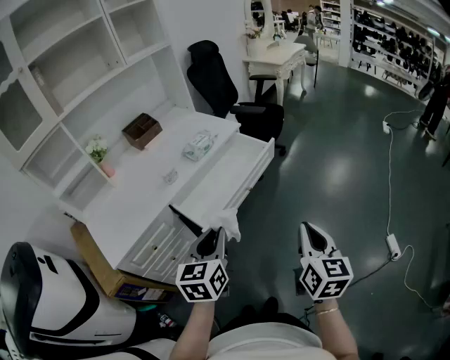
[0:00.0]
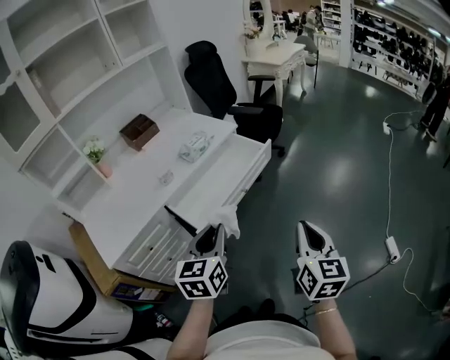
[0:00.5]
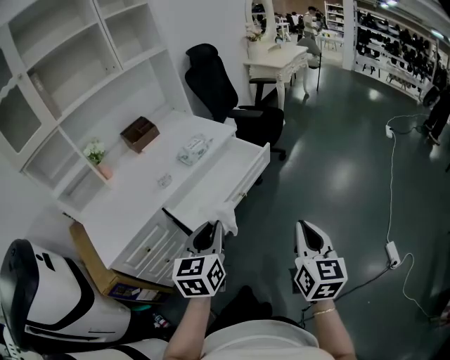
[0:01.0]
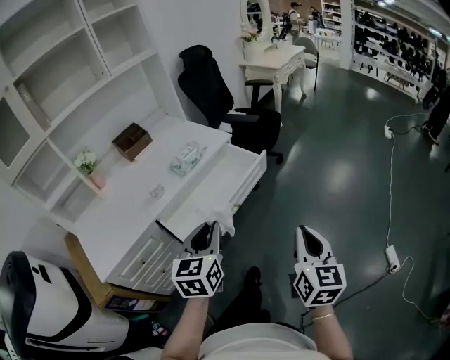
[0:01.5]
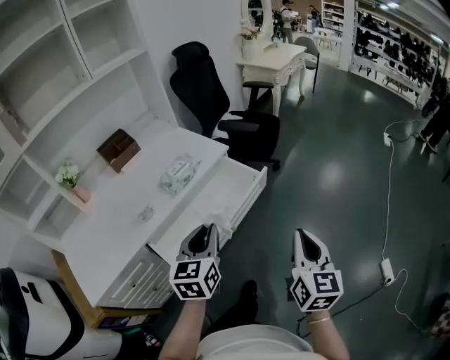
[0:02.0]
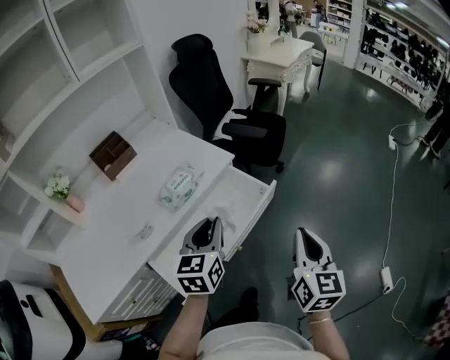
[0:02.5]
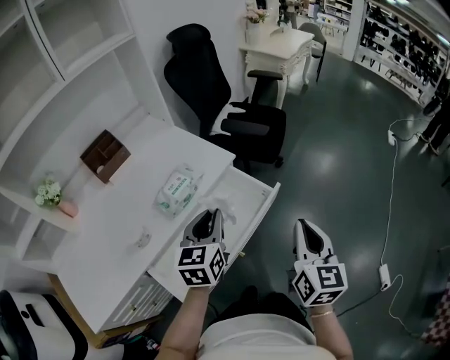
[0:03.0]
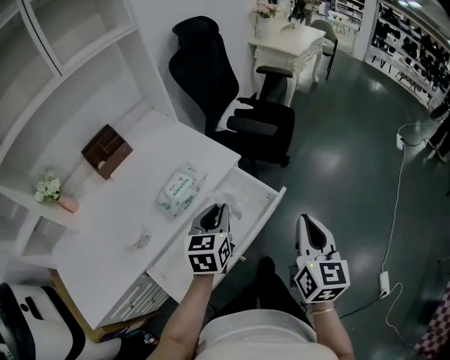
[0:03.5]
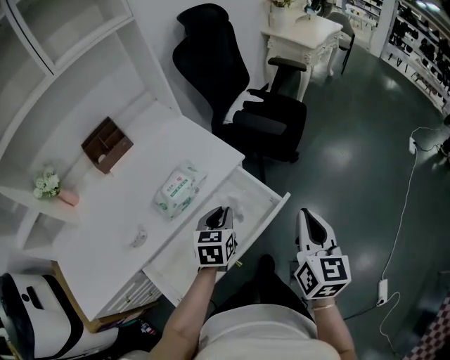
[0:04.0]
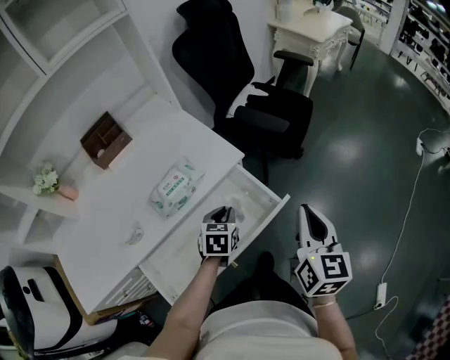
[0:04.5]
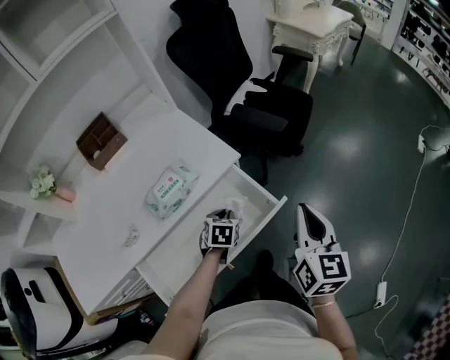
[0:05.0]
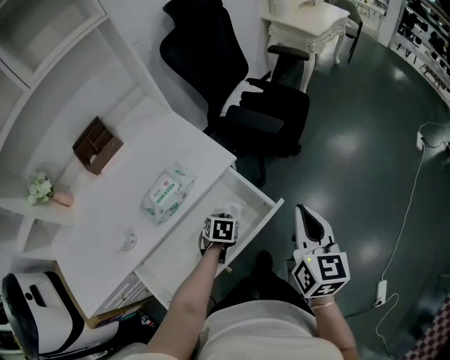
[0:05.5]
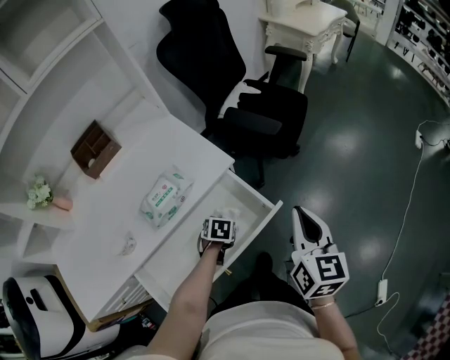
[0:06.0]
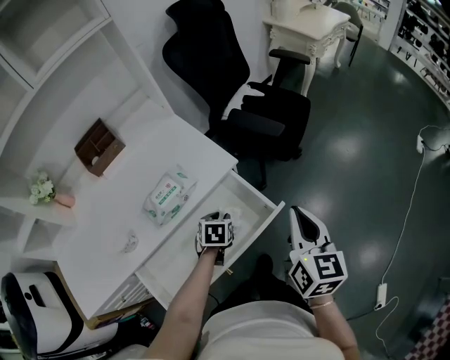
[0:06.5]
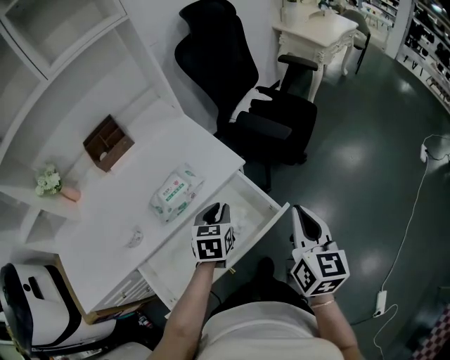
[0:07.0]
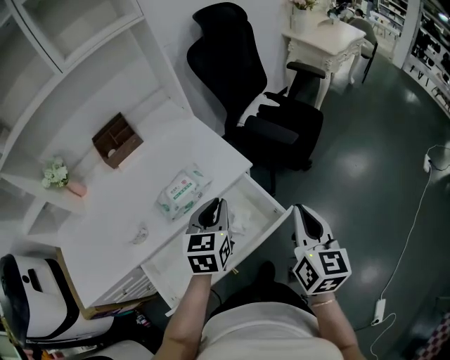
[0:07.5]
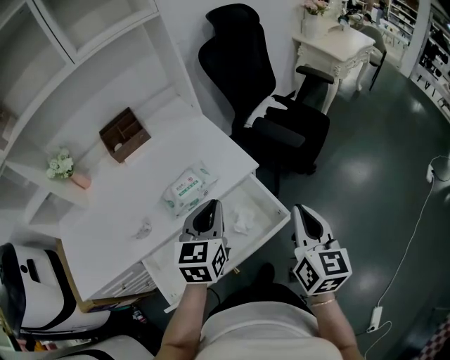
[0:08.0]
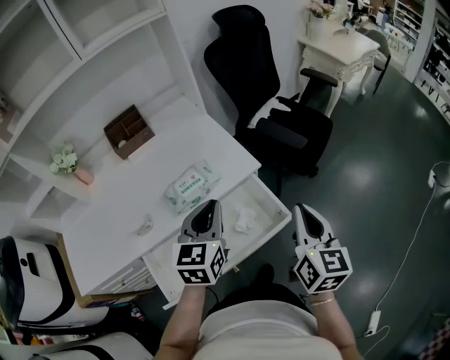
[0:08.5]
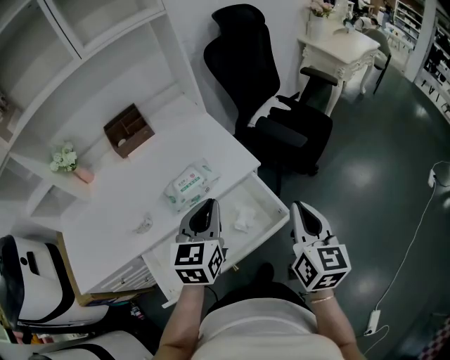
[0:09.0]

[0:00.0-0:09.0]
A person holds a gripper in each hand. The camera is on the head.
0:00.0 to 0:02.0: The two grippers go approximately 20 cm forward.
0:02.0 to 0:04.5: The right gripper is displaced forward by approximately 30 cm; the left gripper shifts roughly 35 cm forward and downward, and rotates roughly 30 degrees.
0:04.5 to 0:07.0: The left gripper travels downward and back again, some 10 cm each way.
0:07.0 to 0:09.0: The left gripper travels upward by approximately 15 cm, and changes its angle by approximately 20 degrees.

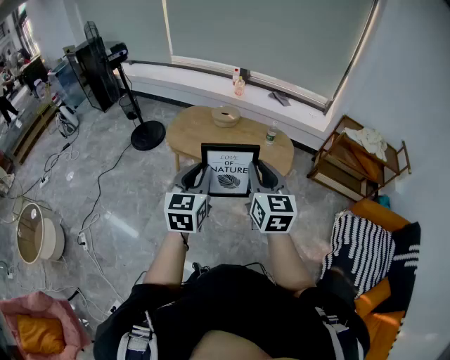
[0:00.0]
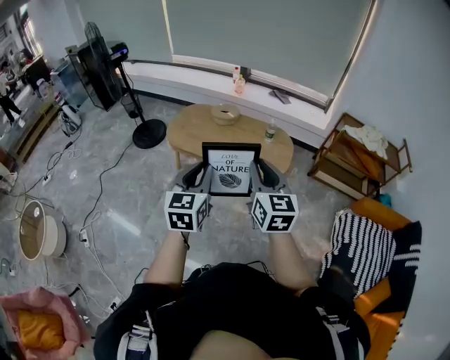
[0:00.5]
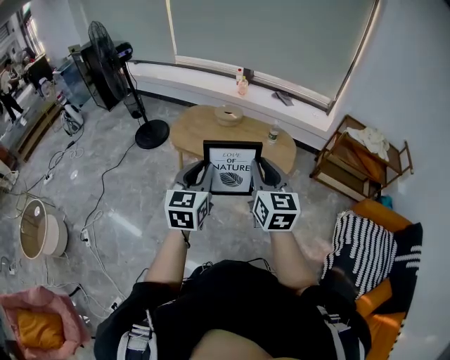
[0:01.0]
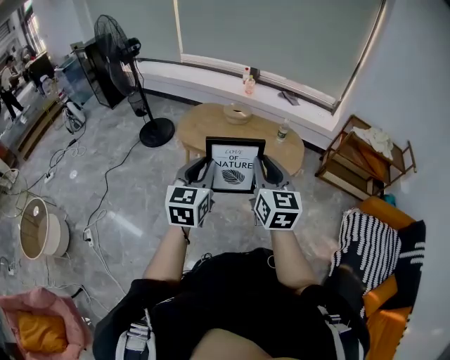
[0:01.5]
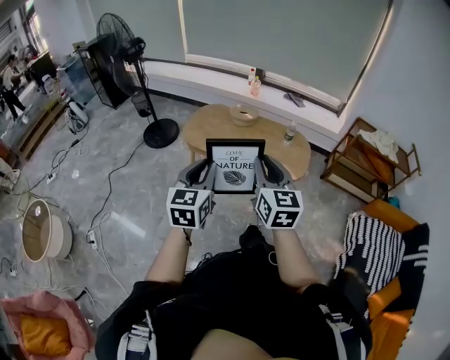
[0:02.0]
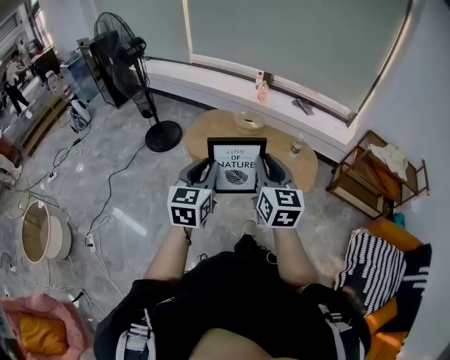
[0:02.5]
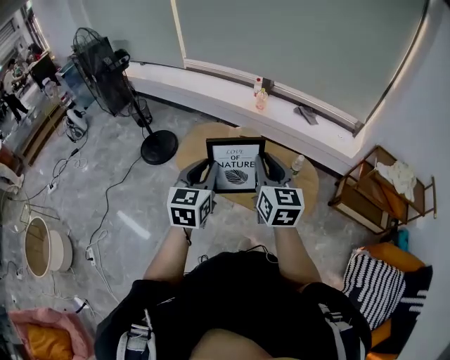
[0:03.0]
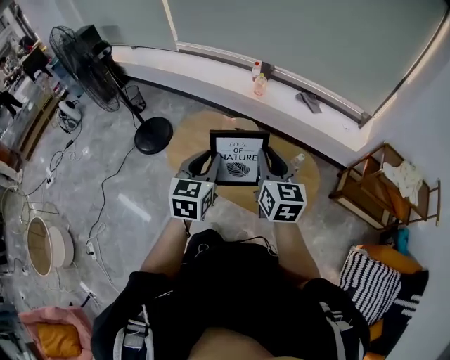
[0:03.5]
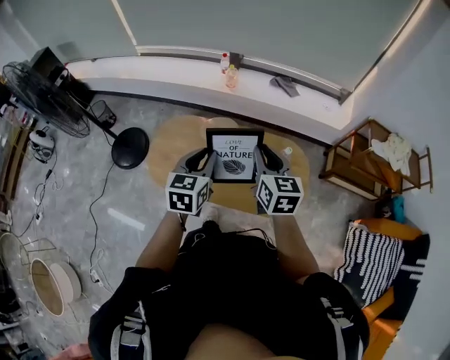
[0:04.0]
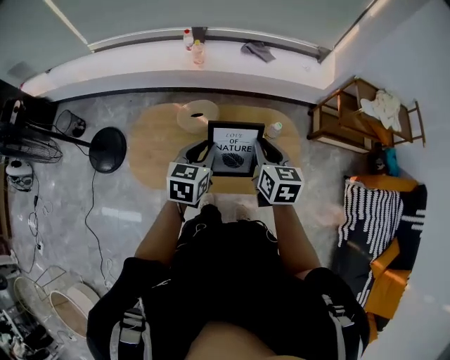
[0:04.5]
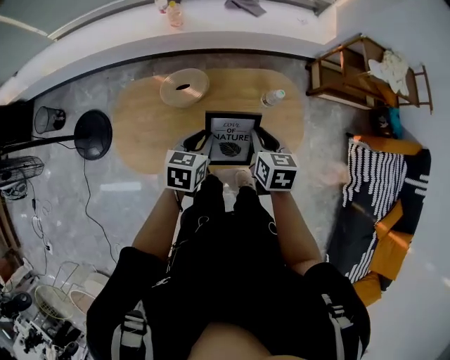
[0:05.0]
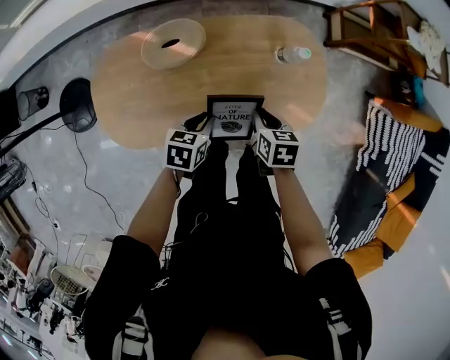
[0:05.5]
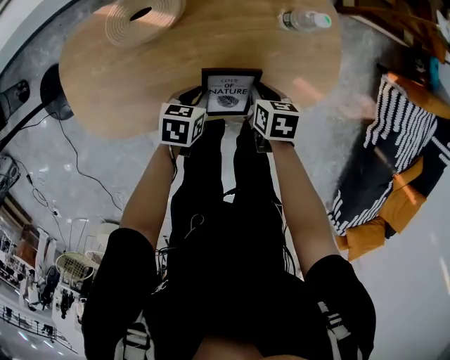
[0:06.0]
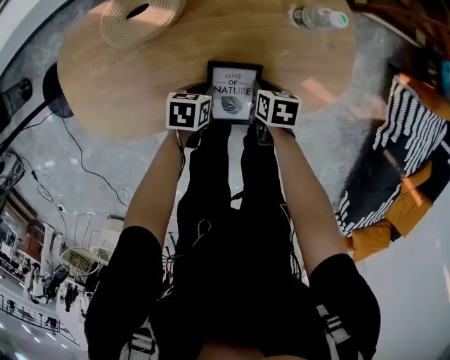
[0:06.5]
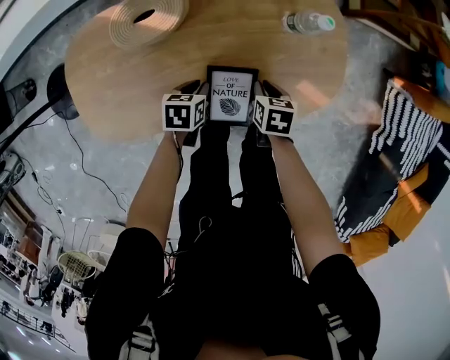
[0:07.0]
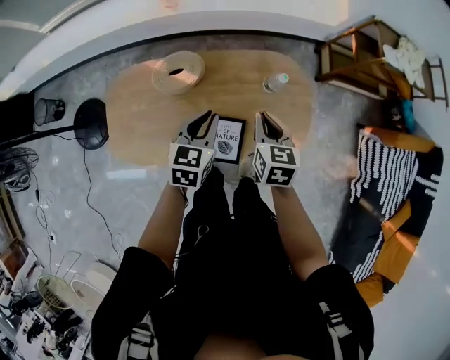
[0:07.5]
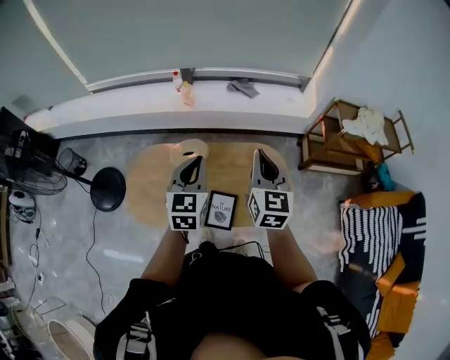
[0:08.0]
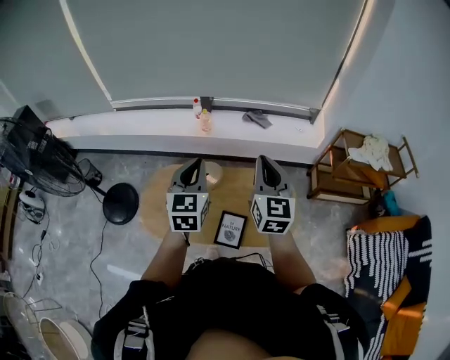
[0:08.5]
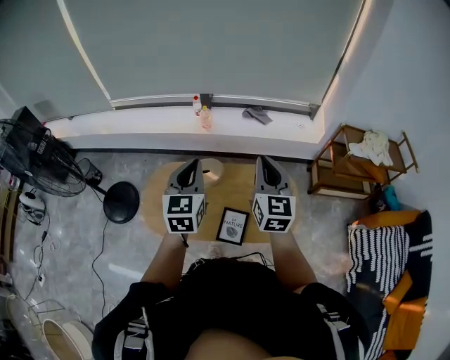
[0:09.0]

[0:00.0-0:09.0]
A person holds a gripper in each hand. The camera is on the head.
0:00.0 to 0:02.0: The grippers both shift to the left by some 10 cm.
0:02.0 to 0:04.5: Both grippers are carried roughly 70 cm. The right gripper changes its angle by roughly 30 degrees. The left gripper changes its angle by some 40 degrees.
0:04.5 to 0:07.0: Both grippers travel together downward, about 50 cm. The left gripper rotates roughly 40 degrees; the right gripper tilts its fingers approximately 40 degrees downward.
0:07.0 to 0:09.0: The grippers both shift upward by about 70 cm. The left gripper tilts its fingers roughly 50 degrees upward; the right gripper tilts its fingers about 60 degrees upward.

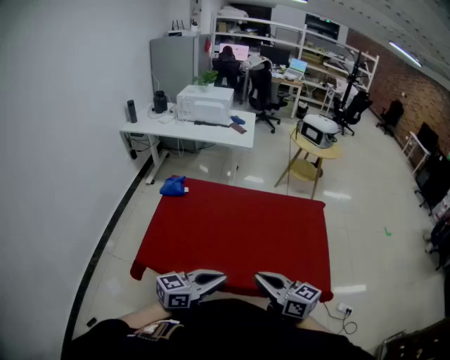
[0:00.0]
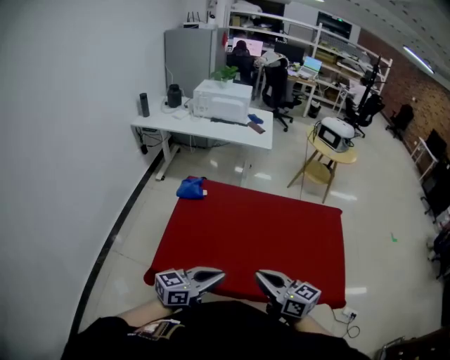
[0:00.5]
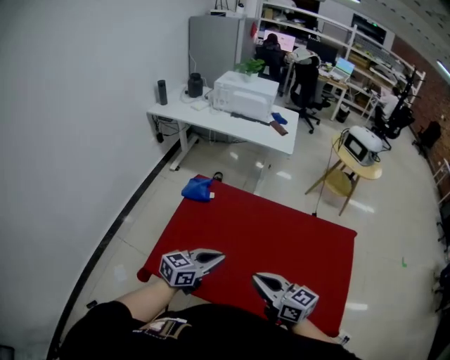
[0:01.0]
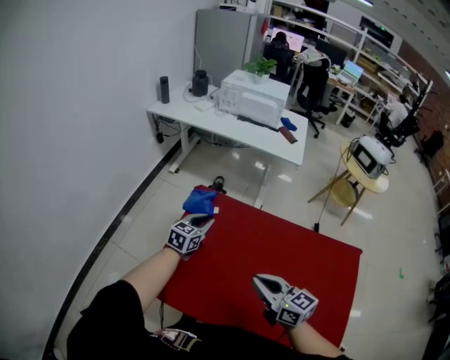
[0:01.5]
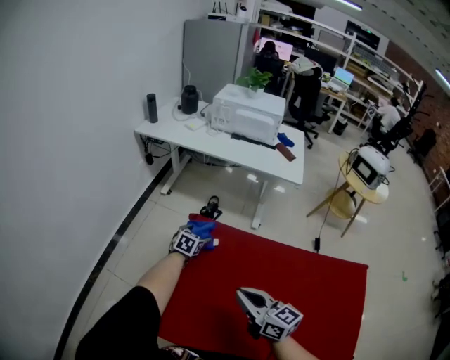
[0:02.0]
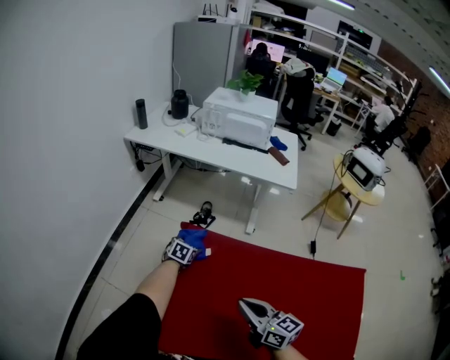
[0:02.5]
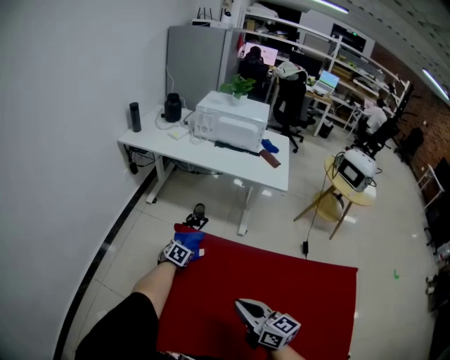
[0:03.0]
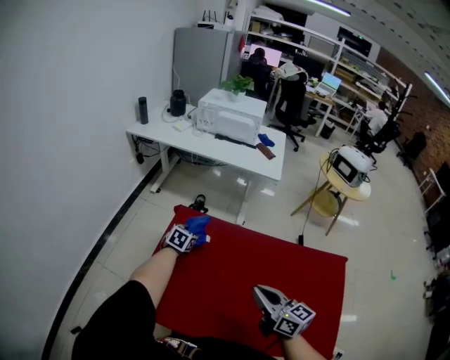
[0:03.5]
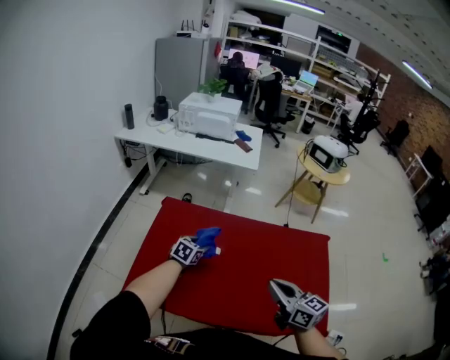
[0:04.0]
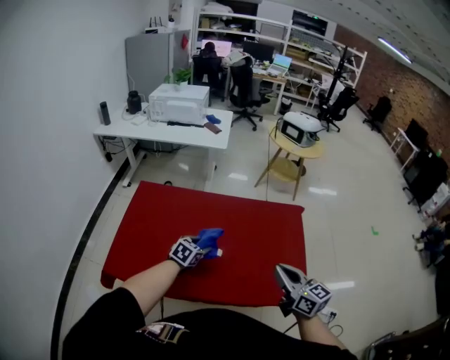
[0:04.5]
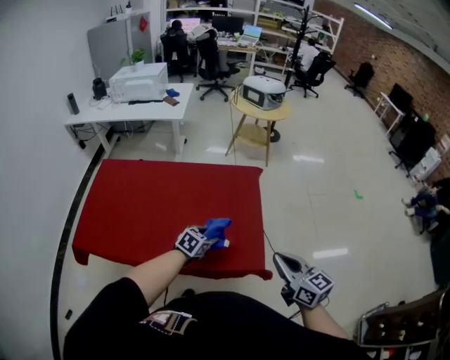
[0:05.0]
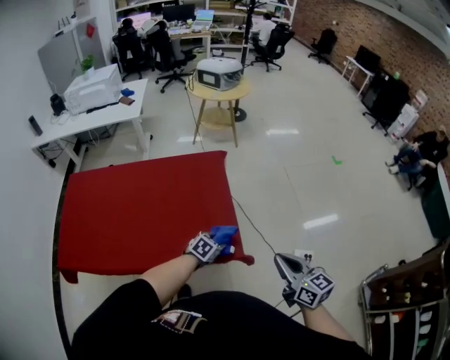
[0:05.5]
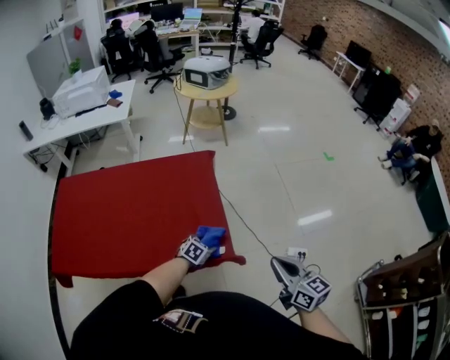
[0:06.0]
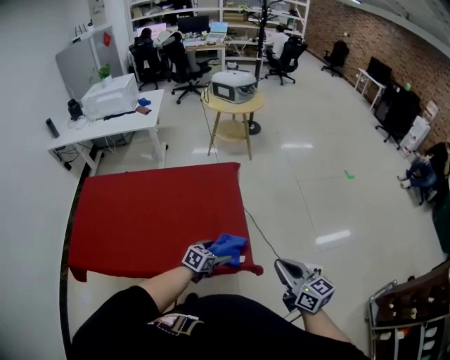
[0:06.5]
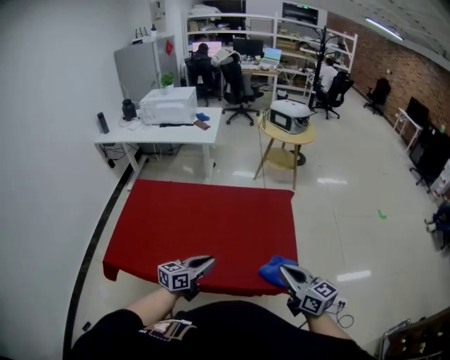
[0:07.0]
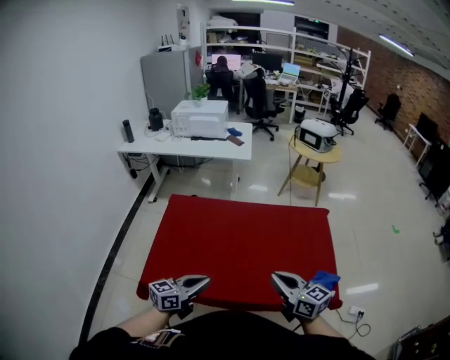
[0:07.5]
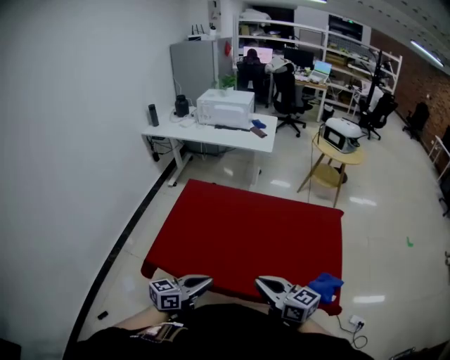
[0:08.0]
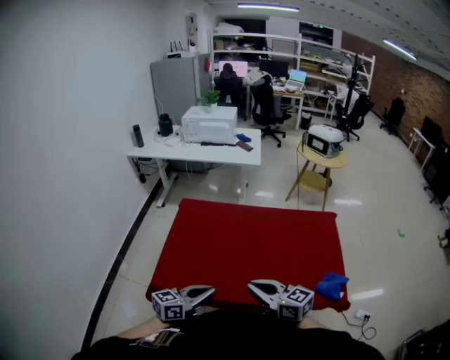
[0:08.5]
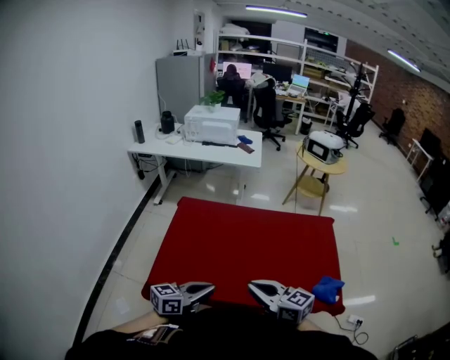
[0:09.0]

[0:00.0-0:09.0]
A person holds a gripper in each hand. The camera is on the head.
0:00.0 to 0:02.0: The two grippers travel together, forward and to the left, some 50 cm. The left gripper is displaced downward by some 25 cm, angles its fingers downward, by roughly 40 degrees, and opens its fingers.
0:02.0 to 0:04.5: The pair of grippers is taken to the right and backward, roughly 50 cm. The left gripper turns by roughly 20 degrees, and closes its fingers. The right gripper turns by some 20 degrees.
0:04.5 to 0:07.0: The left gripper goes about 20 cm to the right, backward and upward, tilts its fingers roughly 30 degrees upward, and opens and closes again. Meanwhile the right gripper is displaced to the right by some 15 cm.
0:07.0 to 0:09.0: Both grippers move to the left, roughly 35 cm.
